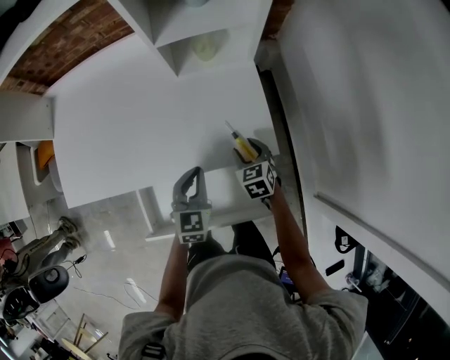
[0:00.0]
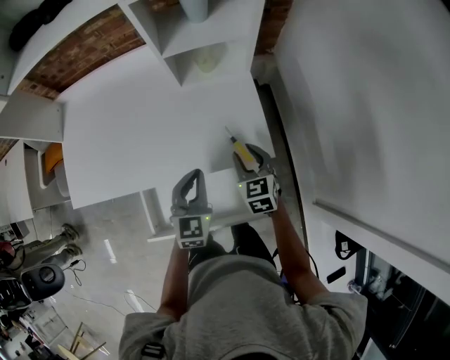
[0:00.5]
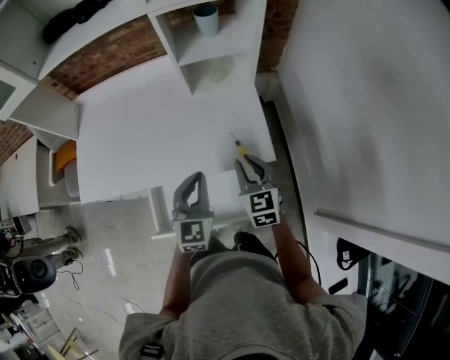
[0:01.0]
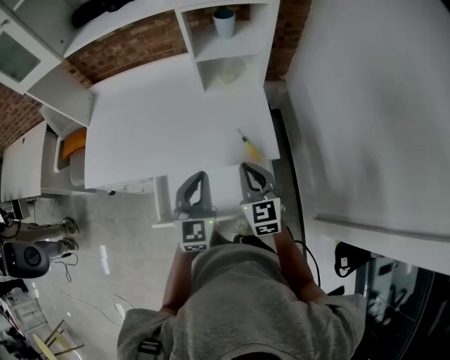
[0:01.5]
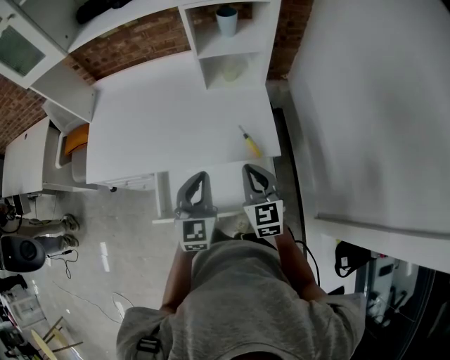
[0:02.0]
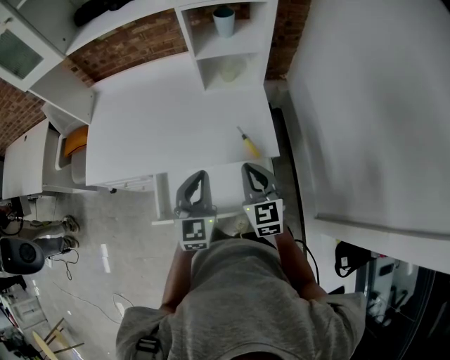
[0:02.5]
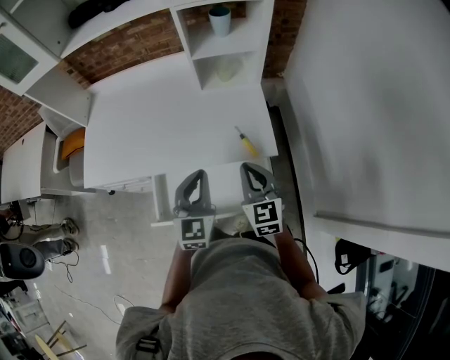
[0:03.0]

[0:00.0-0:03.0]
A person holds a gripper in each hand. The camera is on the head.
0:00.0 to 0:01.5: The grippers both shift upward and backward by about 20 cm. The right gripper changes its angle by roughly 30 degrees, and closes up.
0:01.5 to 0:03.0: There are only small adjustments of the grippers.

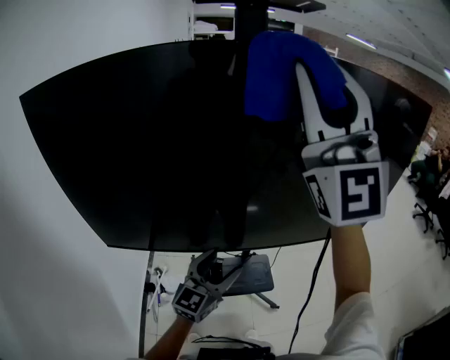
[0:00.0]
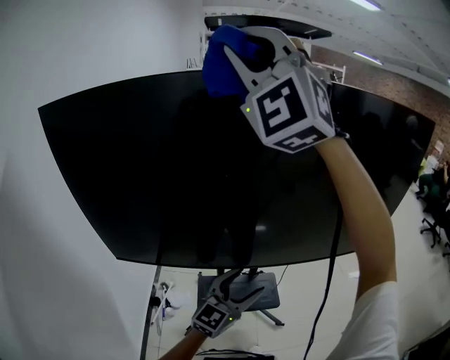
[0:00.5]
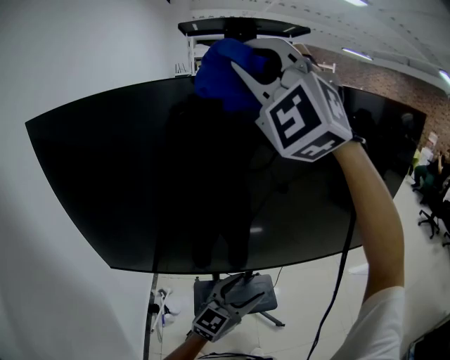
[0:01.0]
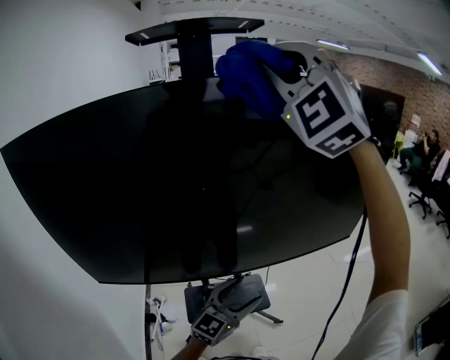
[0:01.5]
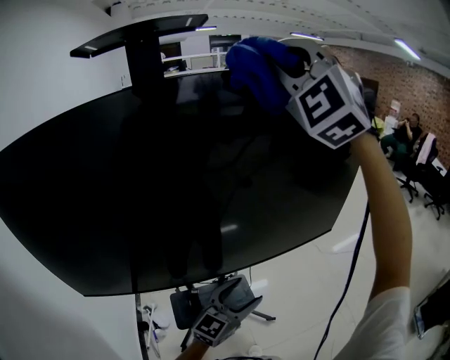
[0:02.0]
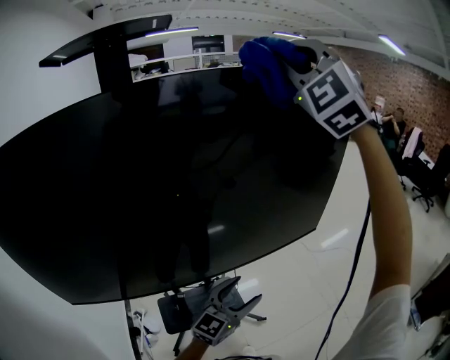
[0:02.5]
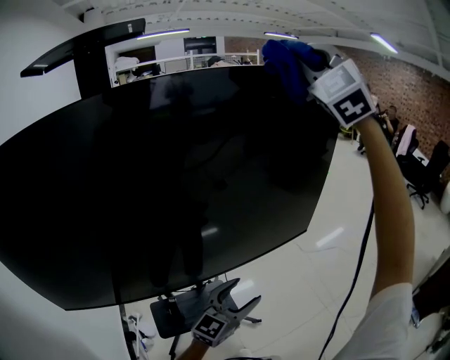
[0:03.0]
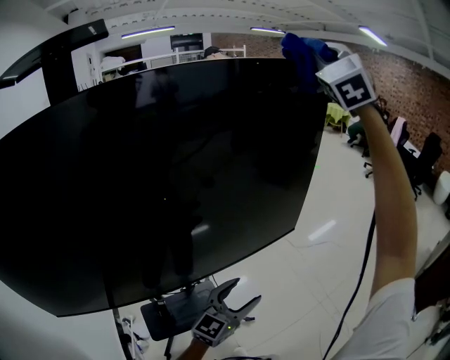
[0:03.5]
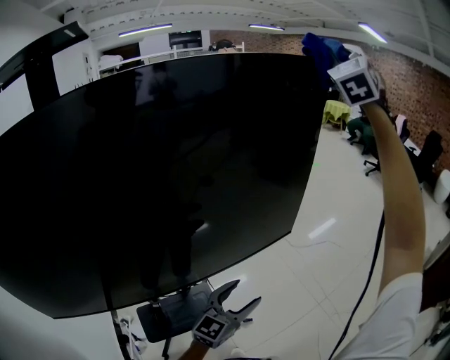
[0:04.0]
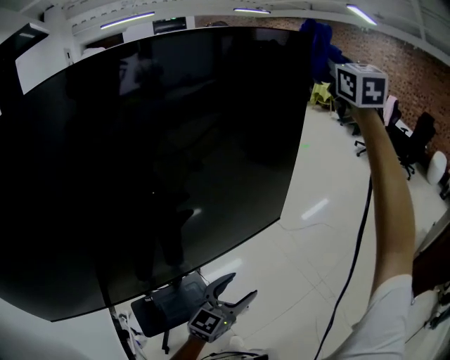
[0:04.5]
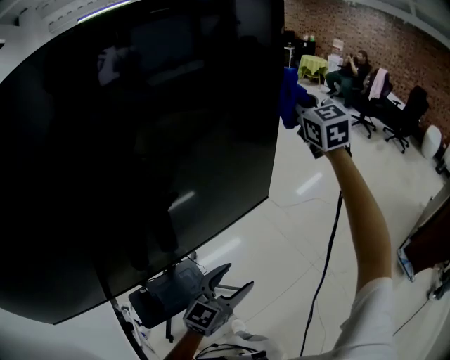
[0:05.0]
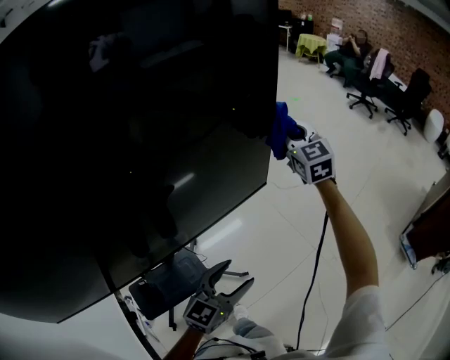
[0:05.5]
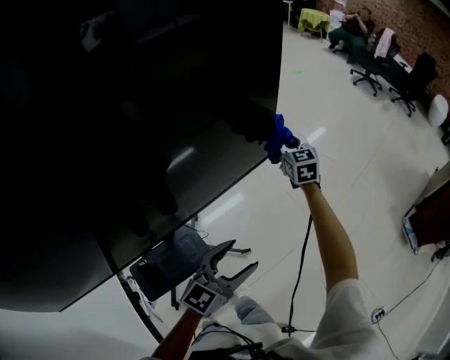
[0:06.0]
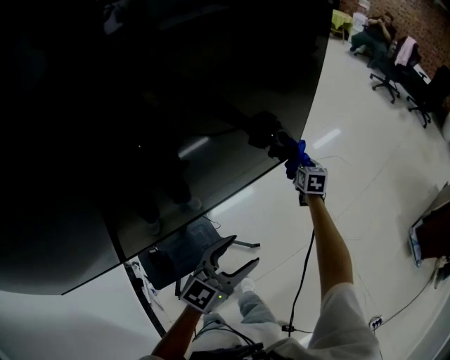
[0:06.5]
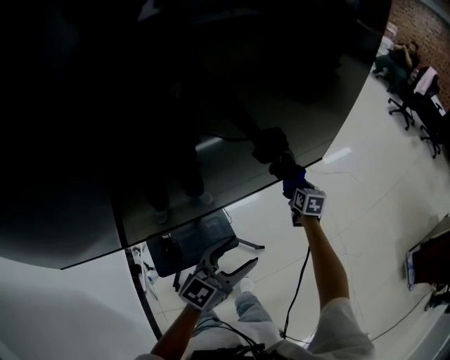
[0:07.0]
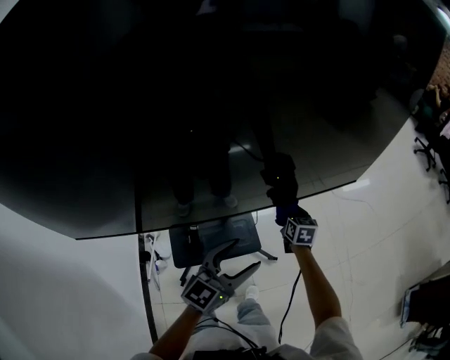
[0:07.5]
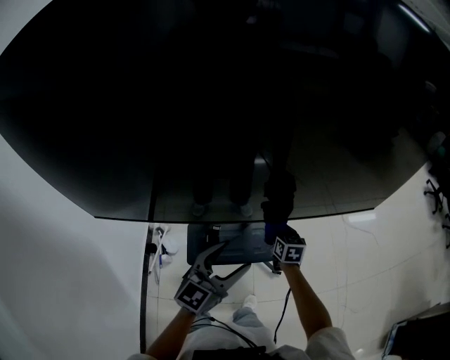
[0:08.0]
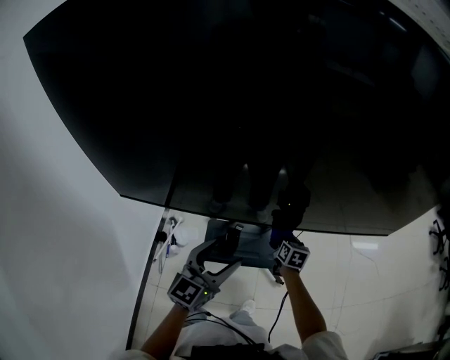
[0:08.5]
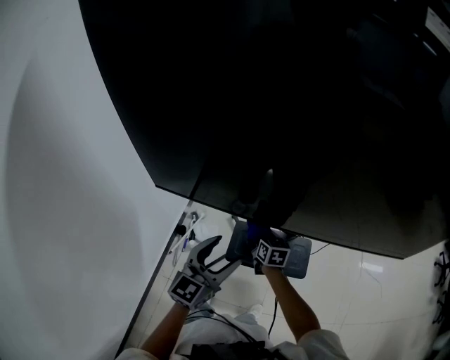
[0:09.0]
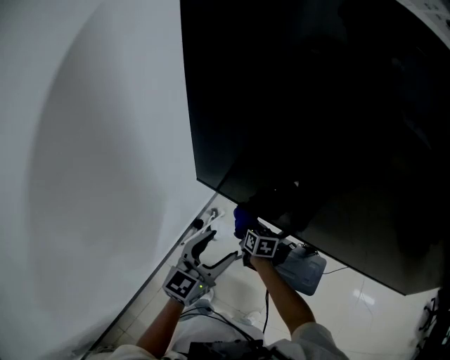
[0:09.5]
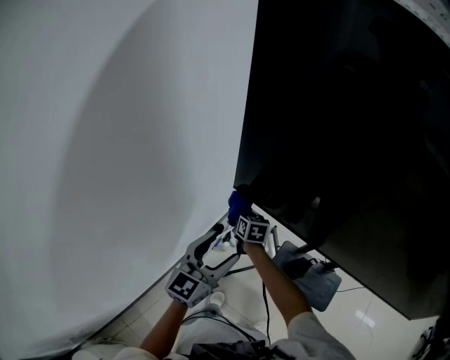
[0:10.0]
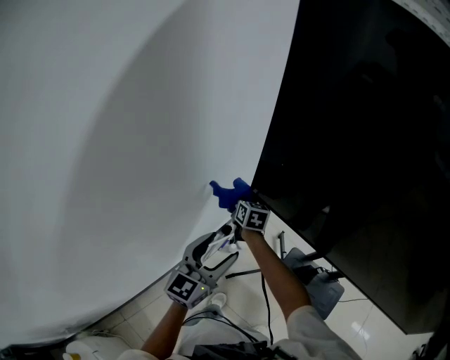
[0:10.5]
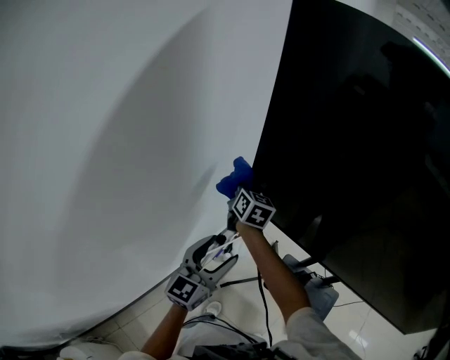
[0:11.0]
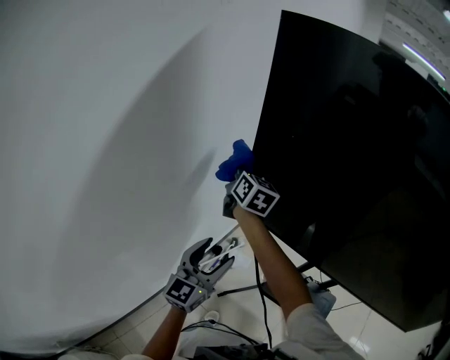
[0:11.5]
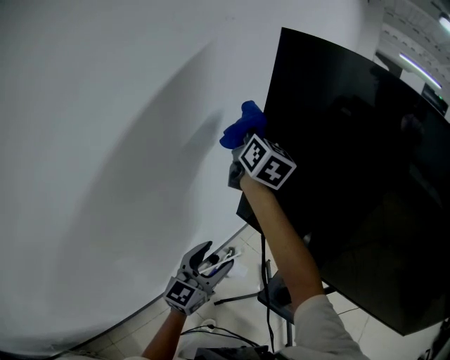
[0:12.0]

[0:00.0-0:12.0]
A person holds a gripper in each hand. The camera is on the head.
0:00.0 to 0:02.0: The right gripper changes place by some 25 cm, and angles its fingers downward, by roughly 30 degrees, while the left gripper changes place by some 20 cm, and turns by approximately 20 degrees.
0:02.0 to 0:04.0: The right gripper travels to the right and forward by roughly 40 cm, and swivels some 40 degrees. Meanwhile the left gripper moves to the right and forward, about 15 cm.
0:04.0 to 0:06.0: The left gripper shifts about 10 cm downward and to the right, while the right gripper heads downward, covering roughly 60 cm, and points its fingers about 30 degrees further downward.
0:06.0 to 0:08.0: The right gripper shifts by some 50 cm, and turns by some 30 degrees. Meanwhile the left gripper moves roughly 35 cm, and turns by approximately 40 degrees.
0:08.0 to 0:10.0: The pair of grippers is taken some 60 cm. The left gripper swivels roughly 40 degrees. The right gripper swivels roughly 40 degrees.
0:10.0 to 0:12.0: The left gripper shifts about 5 cm to the left. The right gripper travels upward by approximately 50 cm, and angles its fingers upward, by roughly 40 degrees.

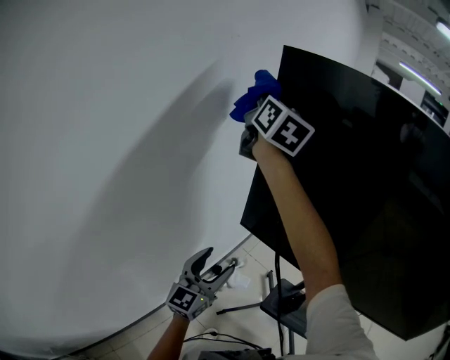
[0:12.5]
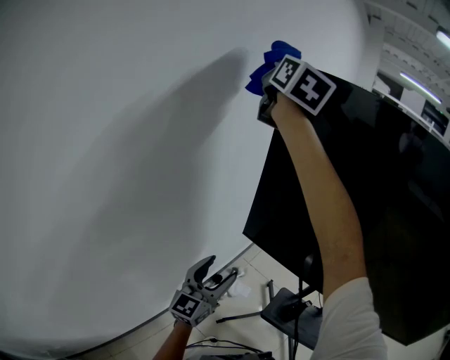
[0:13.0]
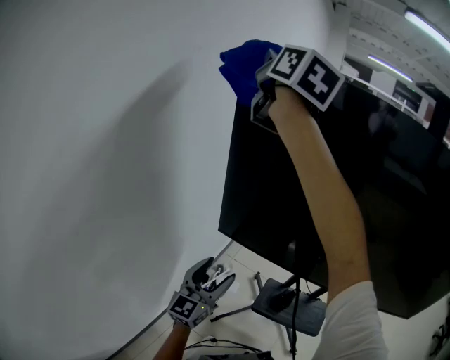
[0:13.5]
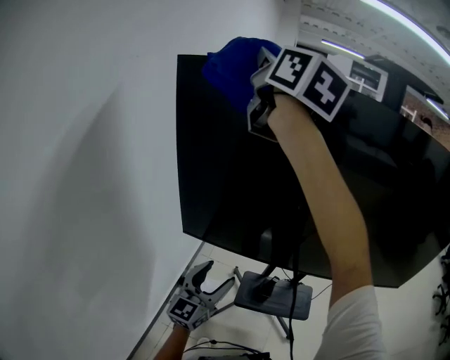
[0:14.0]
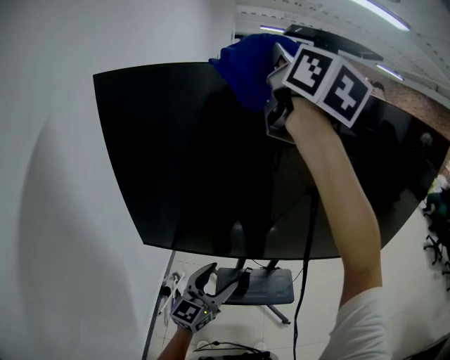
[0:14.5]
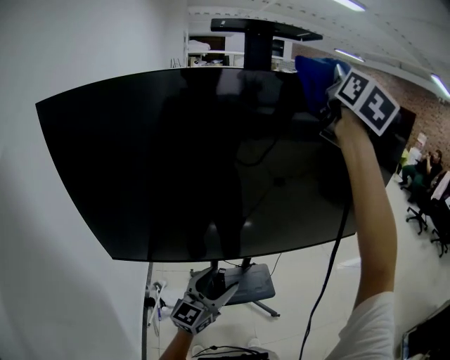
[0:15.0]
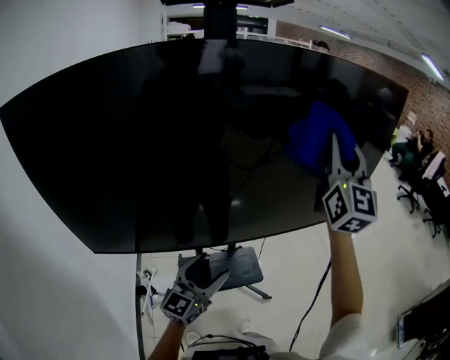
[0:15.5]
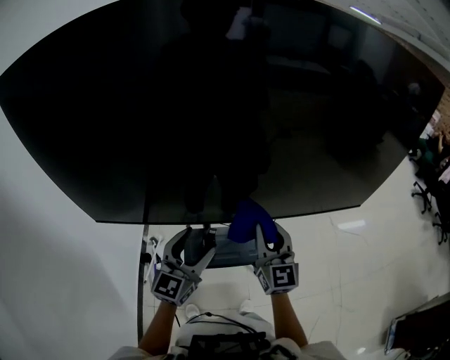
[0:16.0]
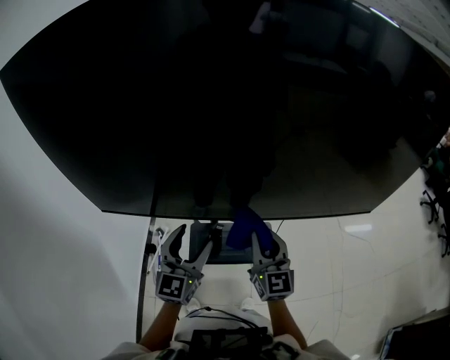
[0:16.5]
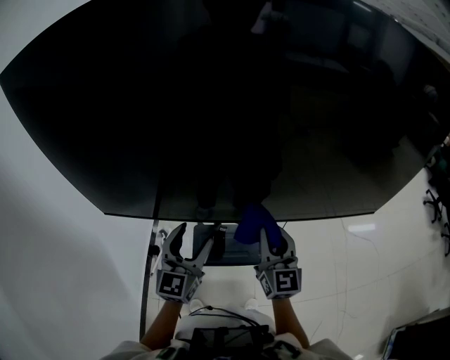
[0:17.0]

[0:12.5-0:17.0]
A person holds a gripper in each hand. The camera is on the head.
0:12.5 to 0:14.5: The left gripper ends up some 25 cm from where it was, and changes its angle by about 40 degrees. The right gripper ends up about 50 cm from where it was, and swivels some 30 degrees.
0:14.5 to 0:17.0: The left gripper changes place by approximately 10 cm; the right gripper moves downward, approximately 50 cm, and changes its angle by about 20 degrees.

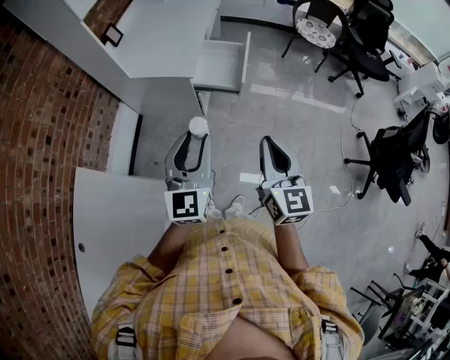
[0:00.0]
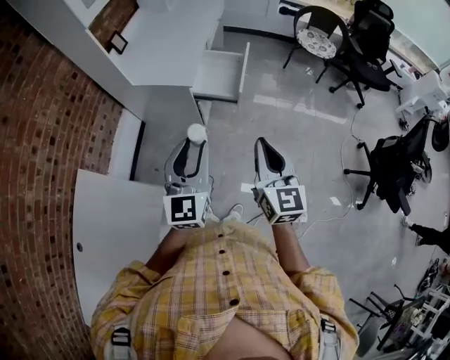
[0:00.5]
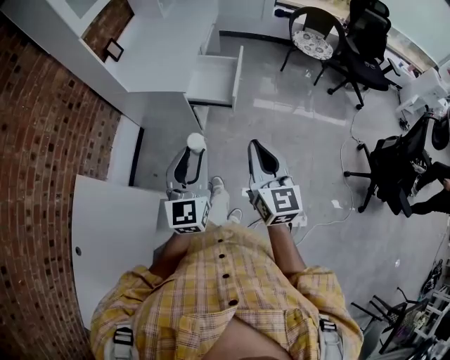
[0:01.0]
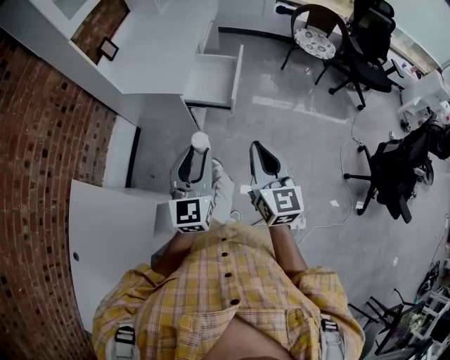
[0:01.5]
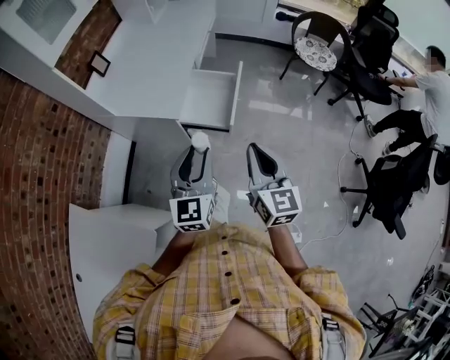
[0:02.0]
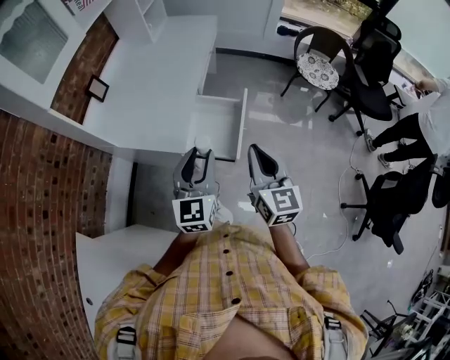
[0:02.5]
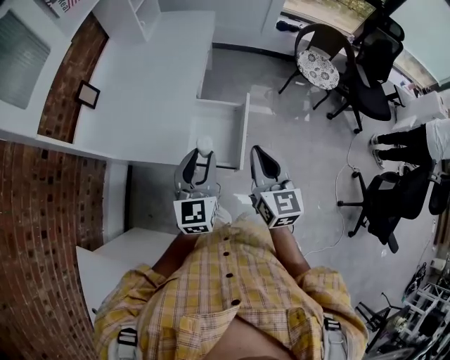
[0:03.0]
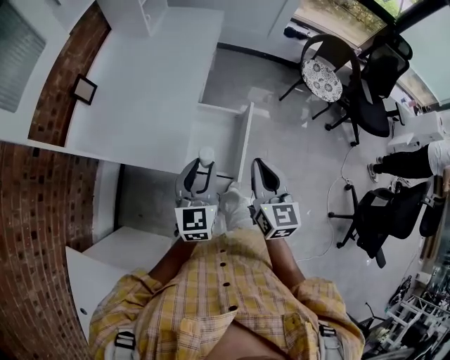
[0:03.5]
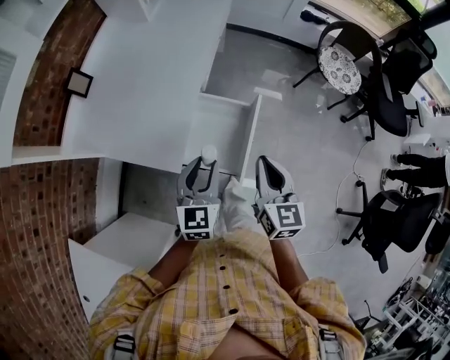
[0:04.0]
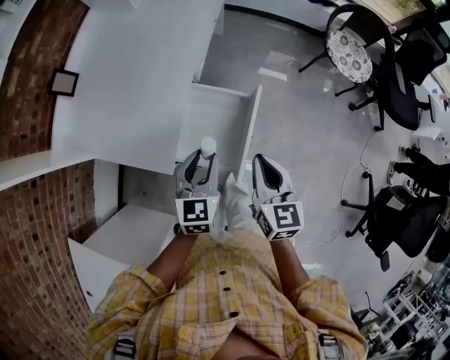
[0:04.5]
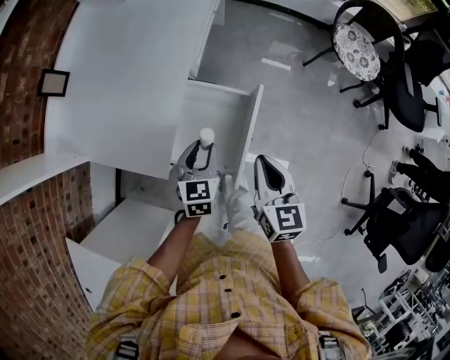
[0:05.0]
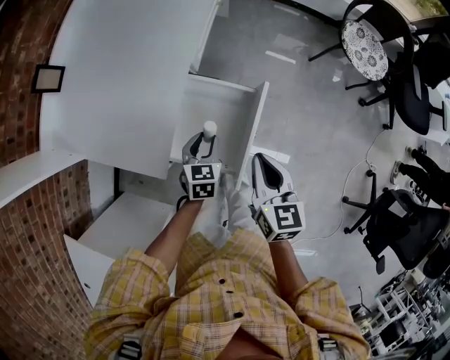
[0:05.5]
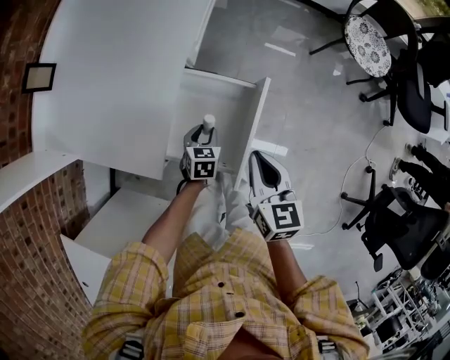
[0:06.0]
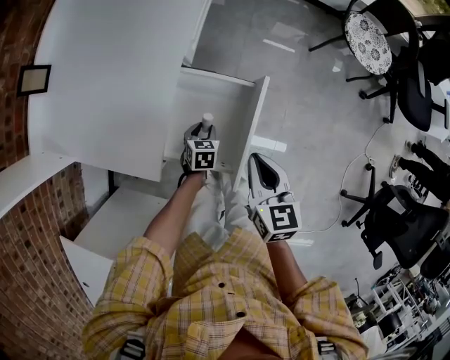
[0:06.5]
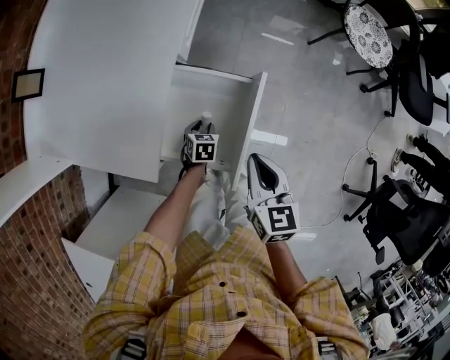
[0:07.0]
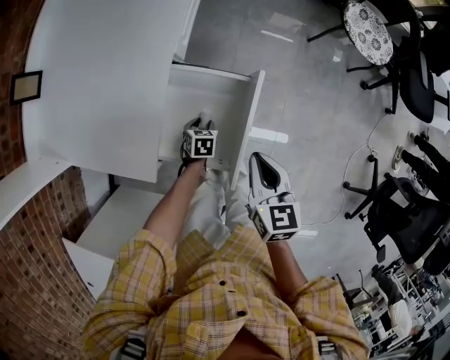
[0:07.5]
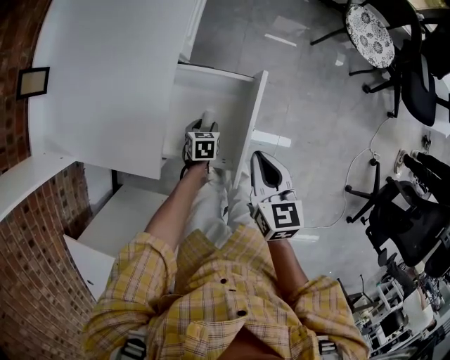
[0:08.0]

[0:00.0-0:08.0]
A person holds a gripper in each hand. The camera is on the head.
0:00.0 to 0:02.0: The left gripper goes about 20 cm forward and to the right, while the right gripper heads forward, covering approximately 20 cm.
0:02.0 to 0:04.0: The two grippers go roughly 30 cm forward.
0:04.0 to 0:06.0: The left gripper is displaced downward by approximately 35 cm, and points its fingers some 30 degrees further downward; the right gripper heads downward and forward, covering roughly 15 cm.
0:06.0 to 0:08.0: The left gripper shifts approximately 10 cm downward.
